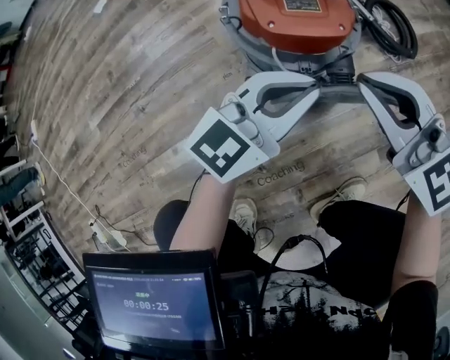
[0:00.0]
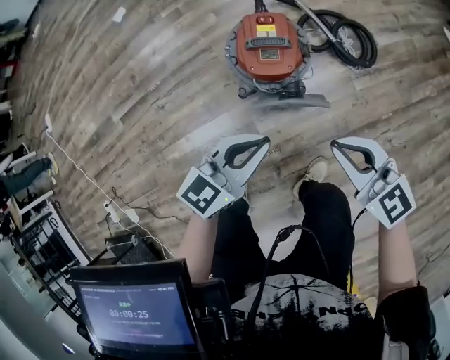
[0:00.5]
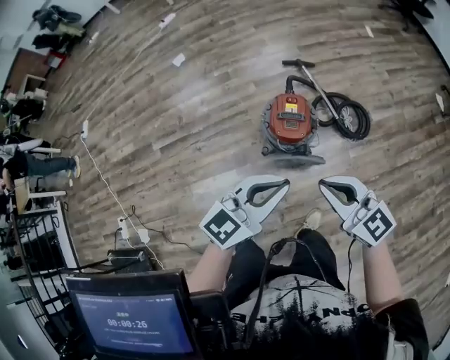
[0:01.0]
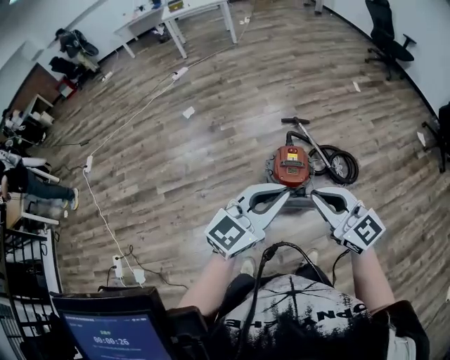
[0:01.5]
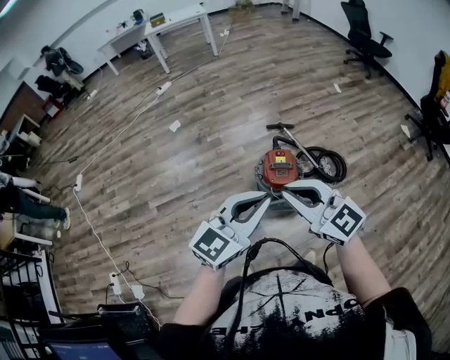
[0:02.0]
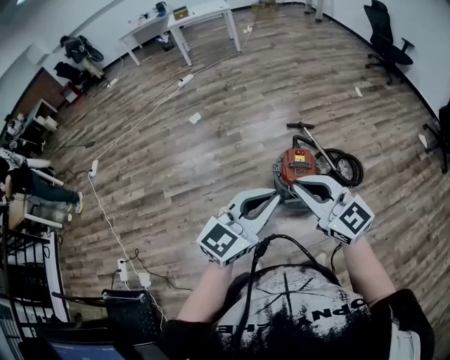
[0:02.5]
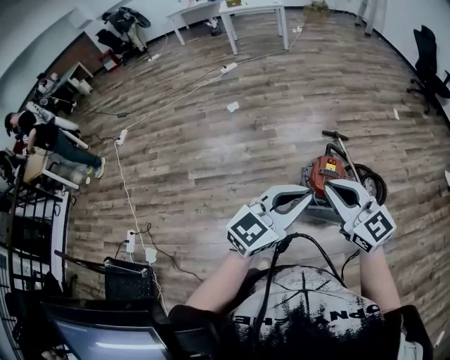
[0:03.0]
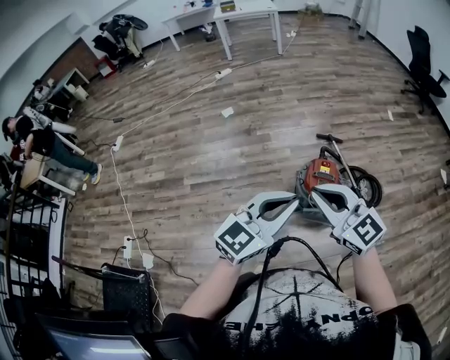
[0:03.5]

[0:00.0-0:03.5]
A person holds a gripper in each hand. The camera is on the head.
0:00.0 to 0:02.0: Both grippers move upward, roughly 60 cm.
0:02.0 to 0:03.5: Both grippers travel together to the left, some 5 cm.

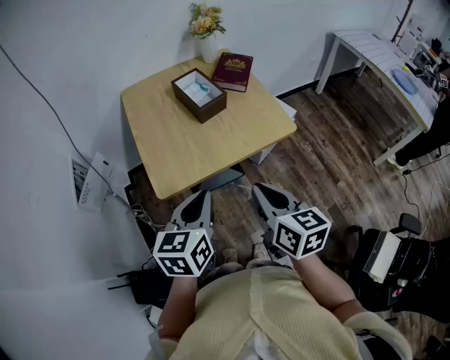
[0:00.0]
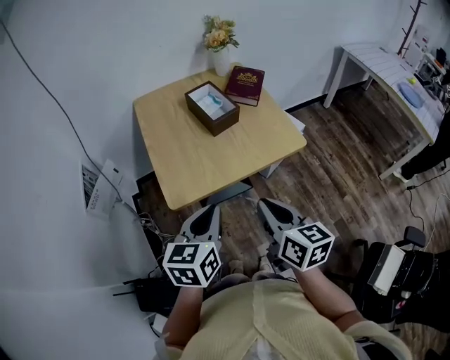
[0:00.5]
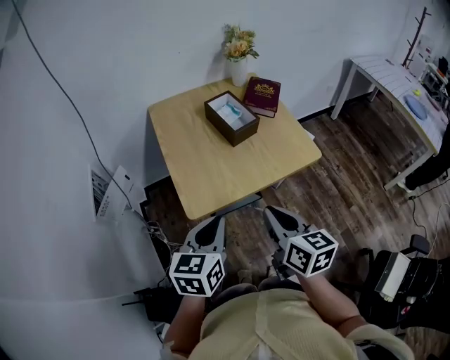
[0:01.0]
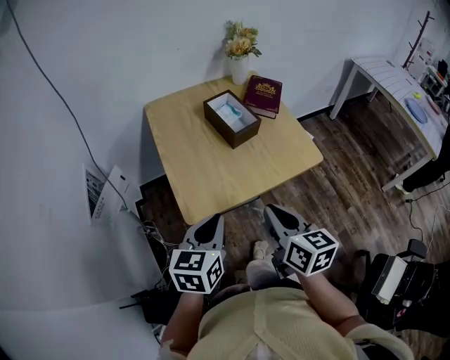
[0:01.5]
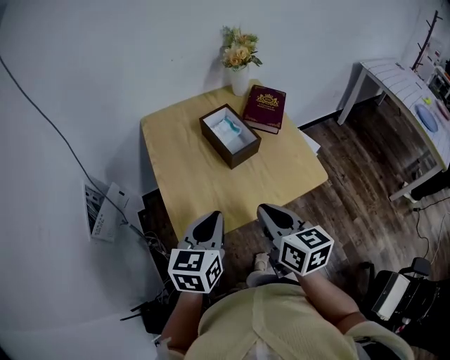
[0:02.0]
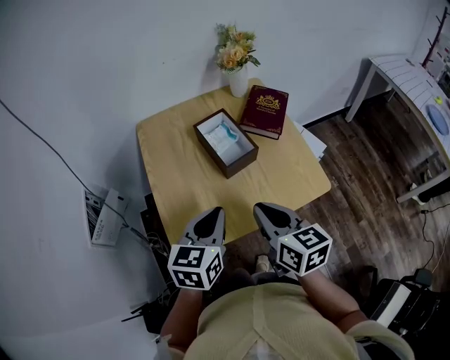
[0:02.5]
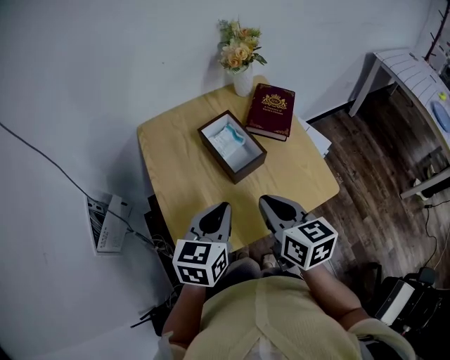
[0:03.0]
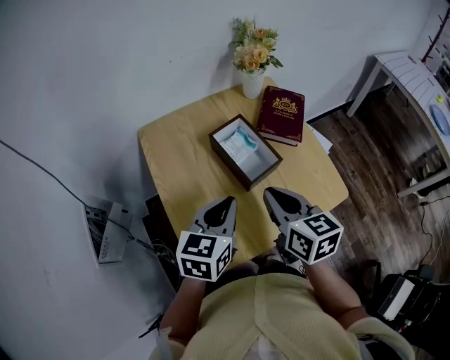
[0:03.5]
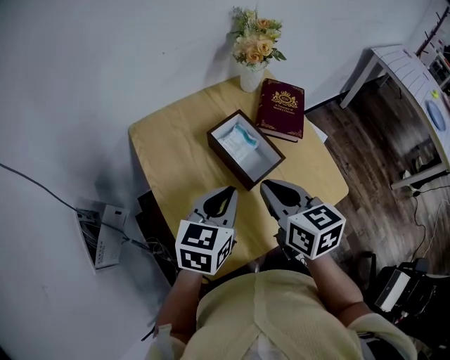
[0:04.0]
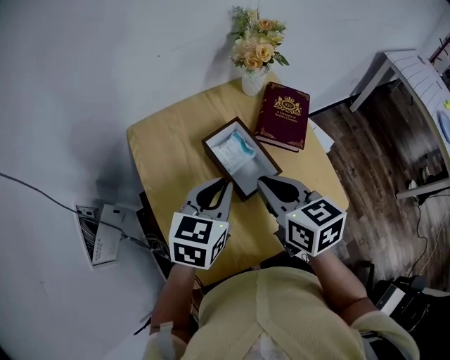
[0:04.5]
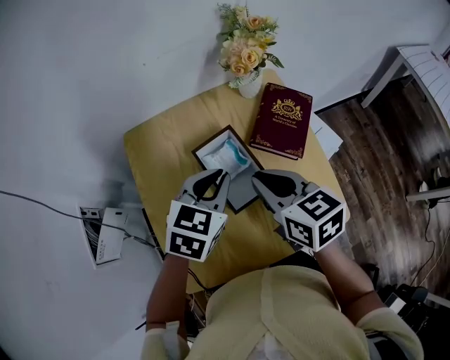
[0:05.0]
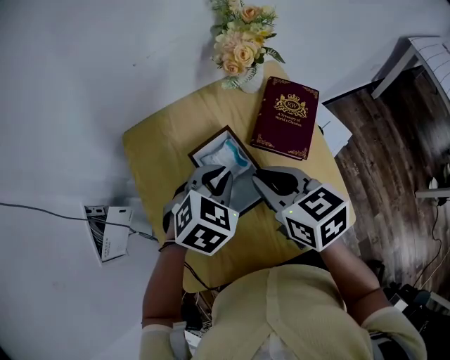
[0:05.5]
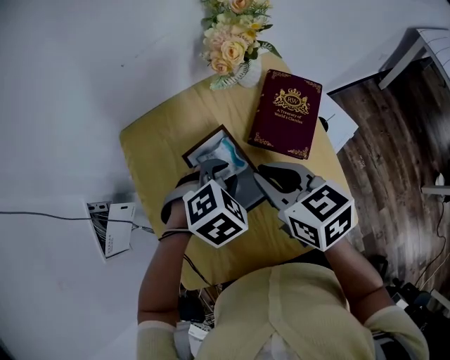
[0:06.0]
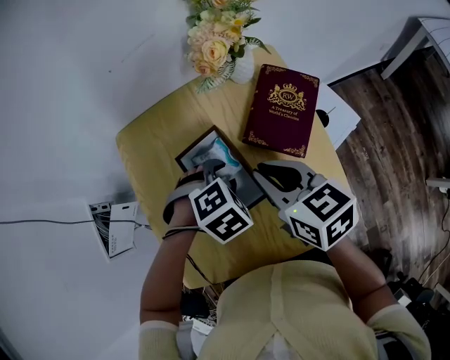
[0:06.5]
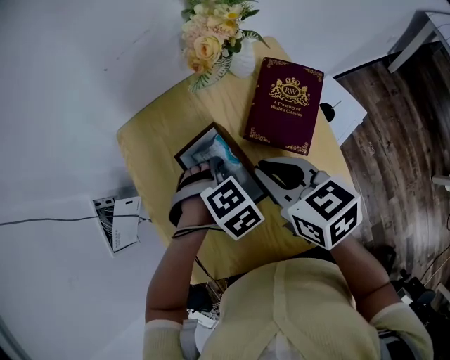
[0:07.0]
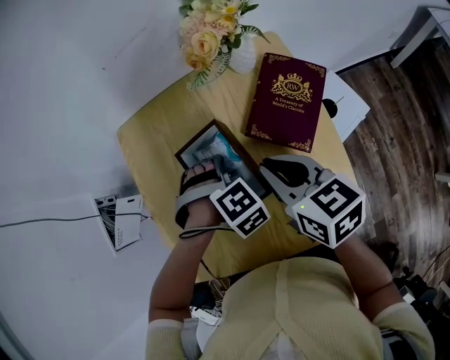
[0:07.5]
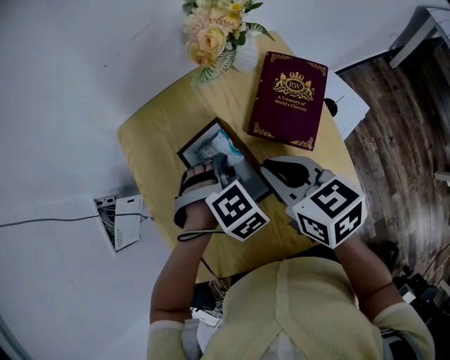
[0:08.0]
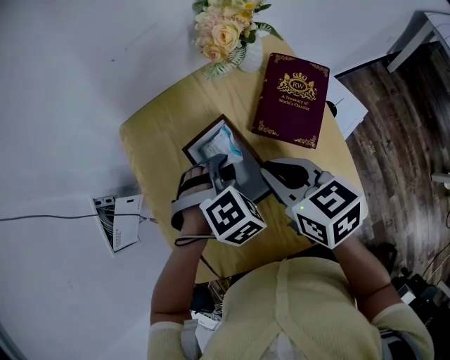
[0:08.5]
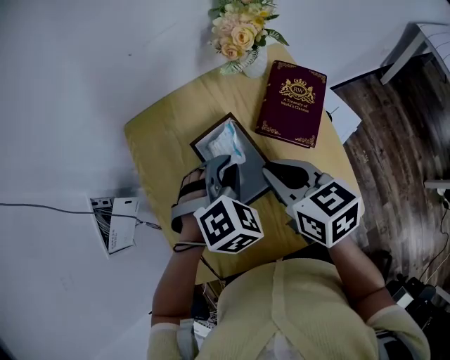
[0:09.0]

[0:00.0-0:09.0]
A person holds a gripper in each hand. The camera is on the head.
0:00.0 to 0:02.0: The left gripper is displaced forward by roughly 10 cm, while the right gripper shifts about 15 cm forward and to the left.
0:02.0 to 0:04.5: The two grippers go roughly 20 cm forward.
0:04.5 to 0:07.0: The left gripper travels downward by some 15 cm, points its fingers roughly 40 degrees further downward, and opens up. Meanwhile the right gripper shifts by roughly 10 cm.
0:07.0 to 0:09.0: The left gripper is displaced upward by approximately 10 cm, swivels roughly 30 degrees, and closes up.

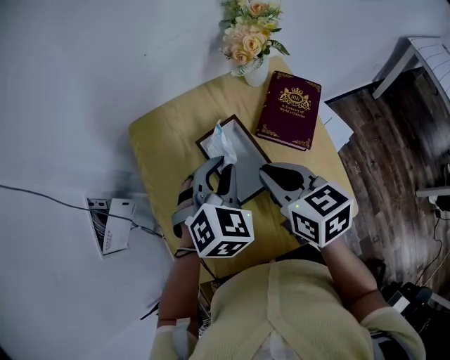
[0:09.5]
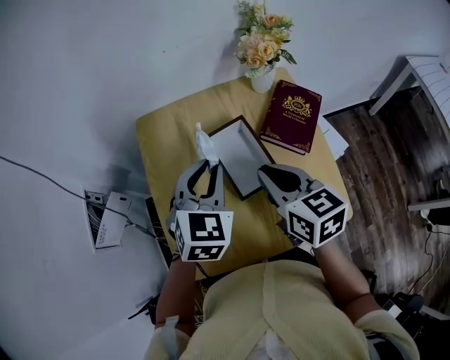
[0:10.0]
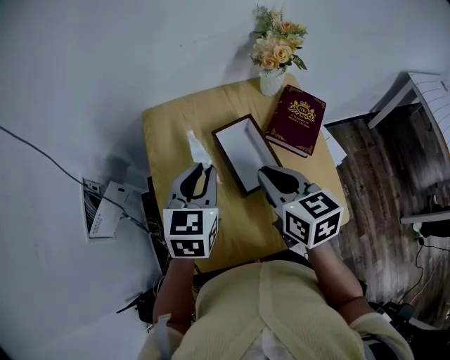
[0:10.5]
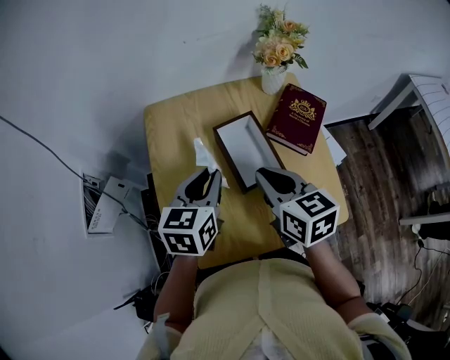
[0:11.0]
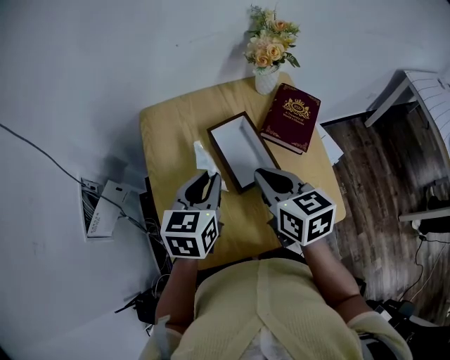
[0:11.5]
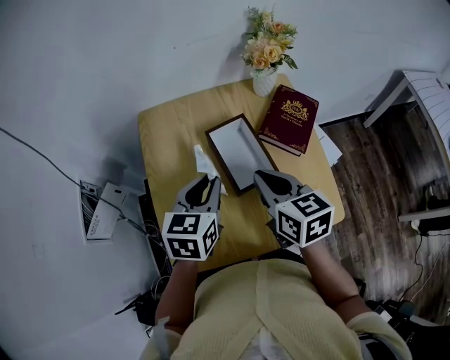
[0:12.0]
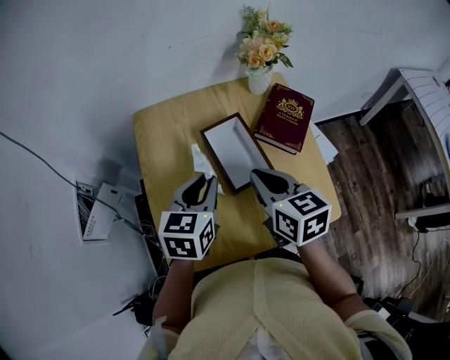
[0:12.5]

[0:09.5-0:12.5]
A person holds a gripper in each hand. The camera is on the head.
0:09.5 to 0:11.0: The right gripper shifts by some 5 cm. Meanwhile the left gripper goes roughly 10 cm to the left, and twists approximately 50 degrees counterclockwise, seen from behind.
0:11.0 to 0:12.5: The grippers stay close to where they were, moving slightly.

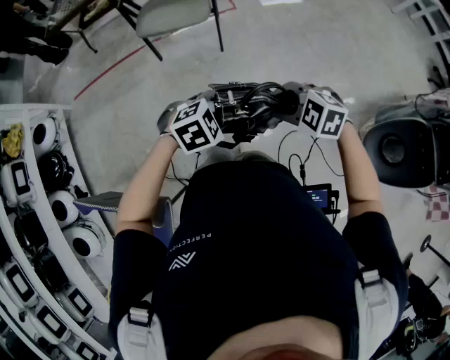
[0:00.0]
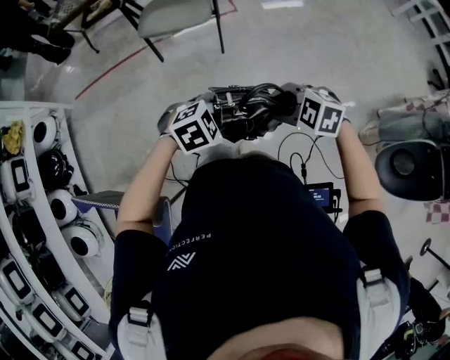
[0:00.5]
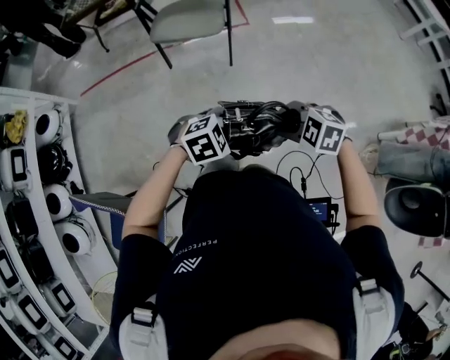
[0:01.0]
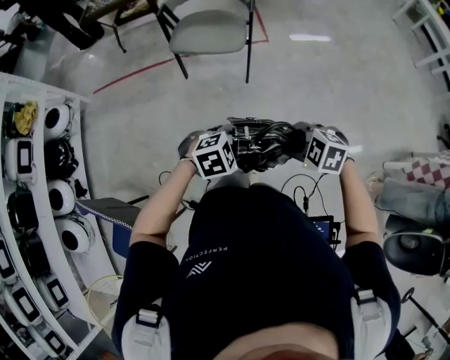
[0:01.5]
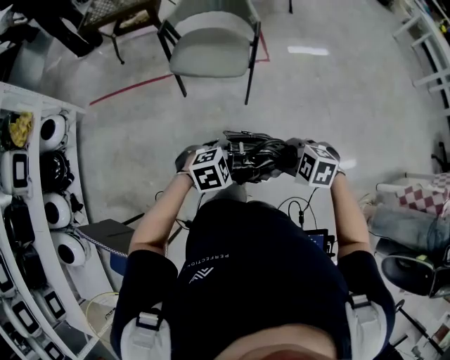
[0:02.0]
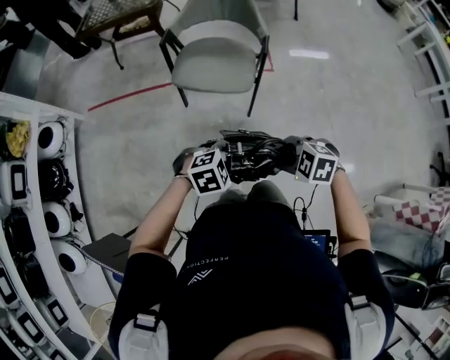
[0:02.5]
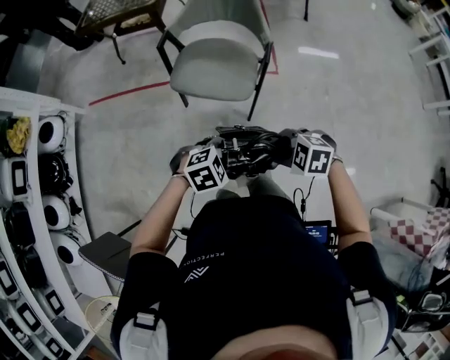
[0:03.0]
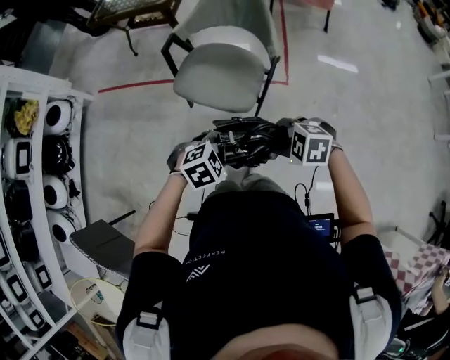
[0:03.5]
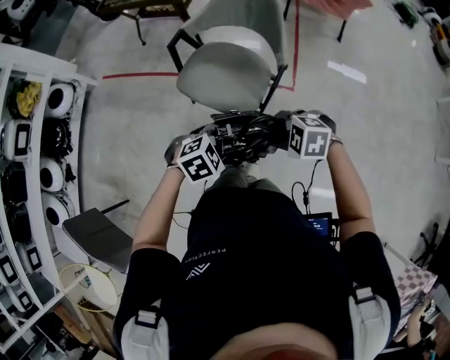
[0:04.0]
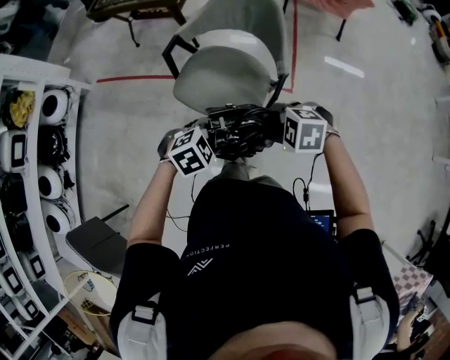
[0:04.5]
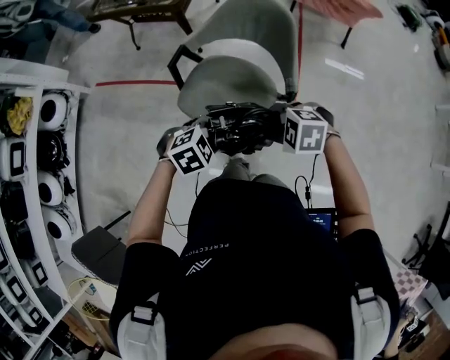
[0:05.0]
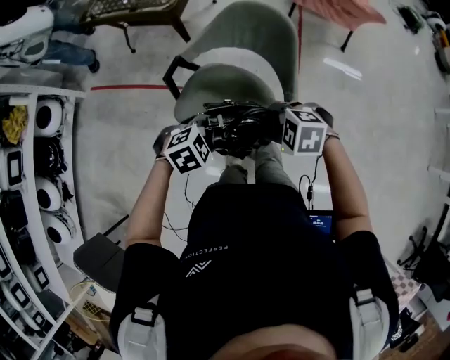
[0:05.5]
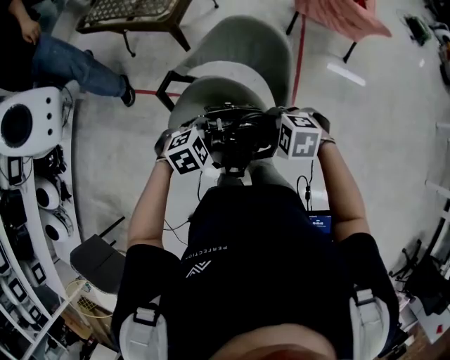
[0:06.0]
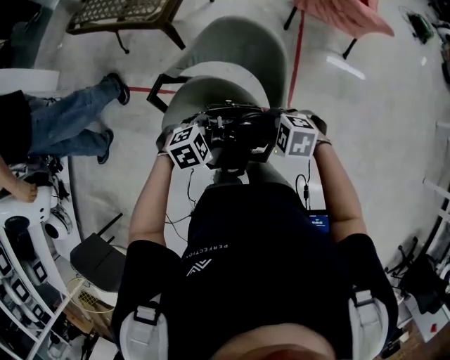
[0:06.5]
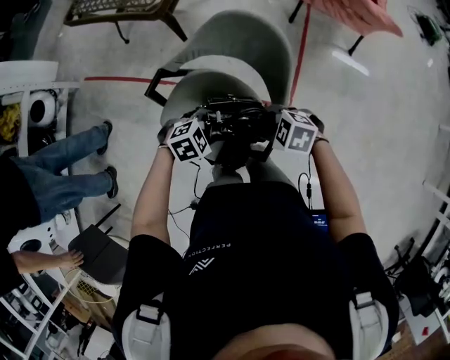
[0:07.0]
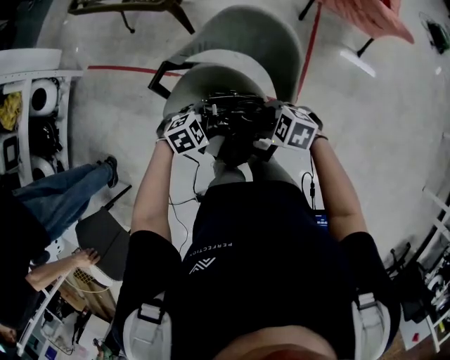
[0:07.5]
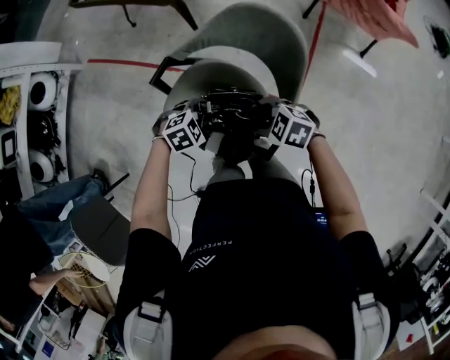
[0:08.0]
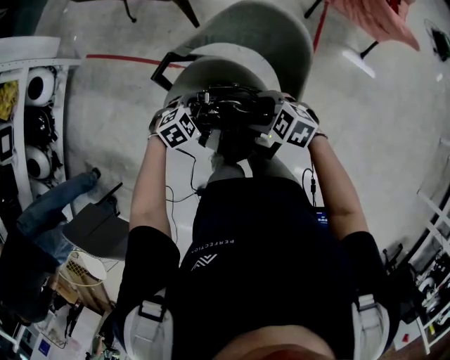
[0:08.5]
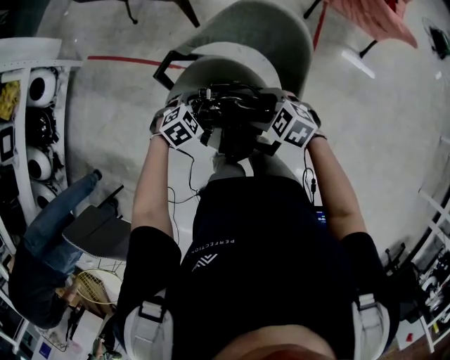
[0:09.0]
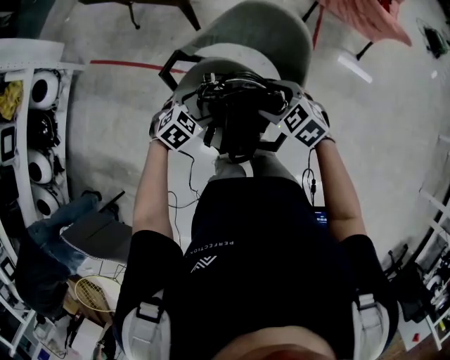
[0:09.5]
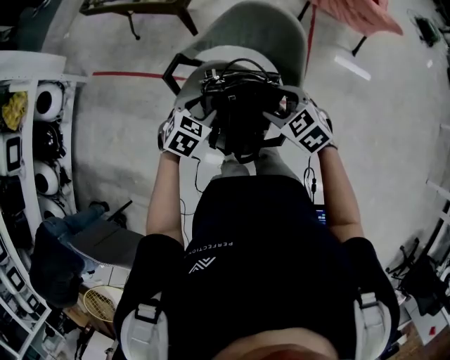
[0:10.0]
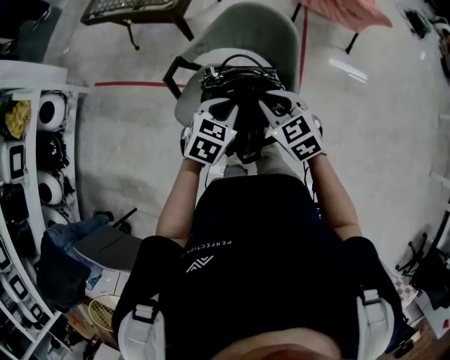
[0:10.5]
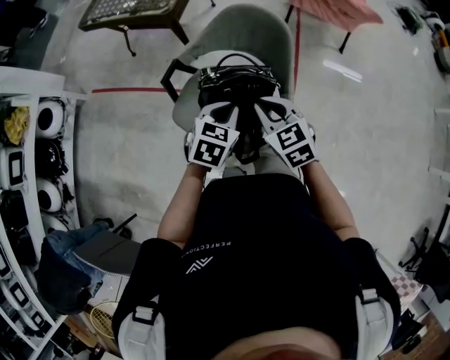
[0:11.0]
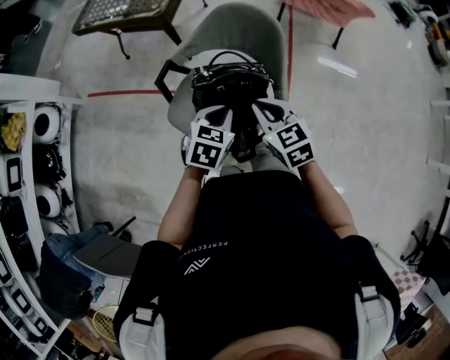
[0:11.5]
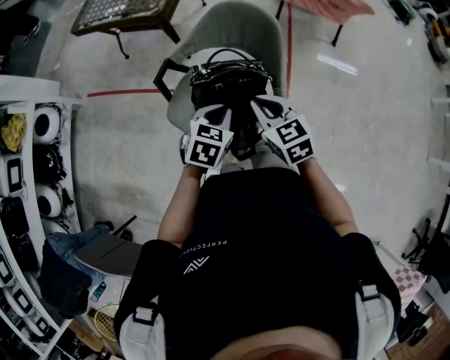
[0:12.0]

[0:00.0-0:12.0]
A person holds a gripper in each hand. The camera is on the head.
0:00.0 to 0:02.0: The left gripper moves some 15 cm, while the right gripper ends up about 15 cm from where it was.
0:02.0 to 0:04.0: The left gripper ends up some 30 cm from where it was, and rotates some 30 degrees. The right gripper shifts by some 35 cm, and turns by some 30 degrees.
0:04.0 to 0:06.0: The left gripper shifts by approximately 30 cm. The right gripper moves some 30 cm.
0:06.0 to 0:08.0: The left gripper shifts approximately 10 cm downward, and opens up, while the right gripper heads downward, covering some 5 cm.
0:08.0 to 0:10.0: Both grippers travel together upward, roughly 5 cm. The left gripper turns by roughly 30 degrees; the right gripper swivels about 30 degrees.
0:10.0 to 0:12.0: The left gripper shifts some 10 cm to the right, backward and upward, and closes up. Meanwhile the right gripper travels upward and backward by approximately 10 cm, turns by approximately 30 degrees, and closes up.
